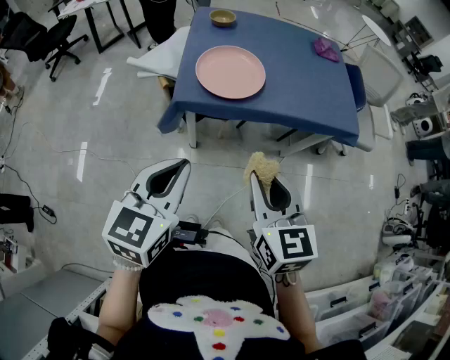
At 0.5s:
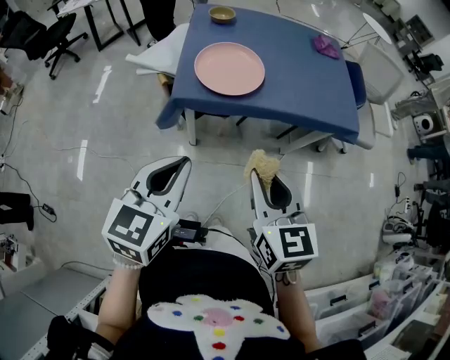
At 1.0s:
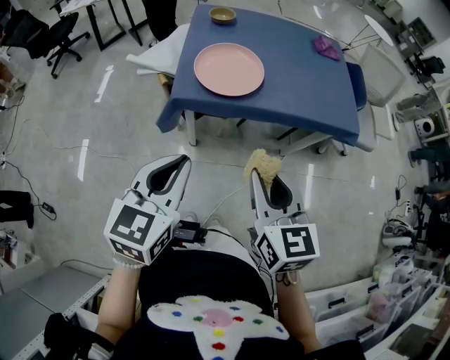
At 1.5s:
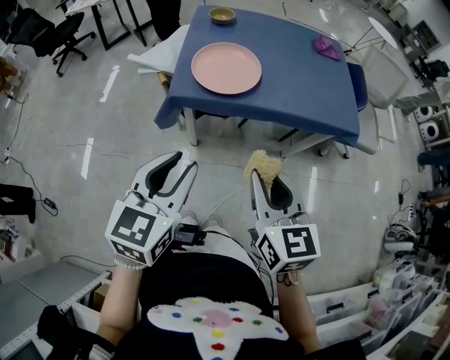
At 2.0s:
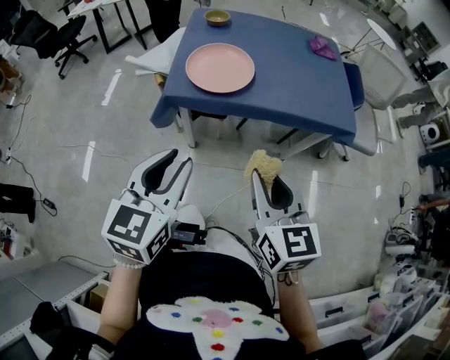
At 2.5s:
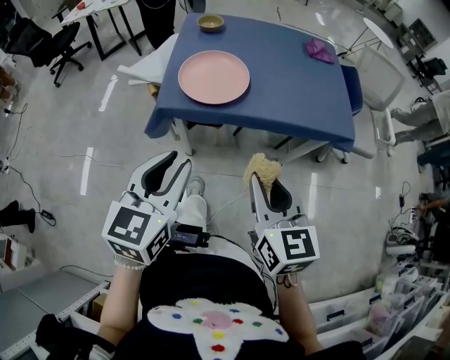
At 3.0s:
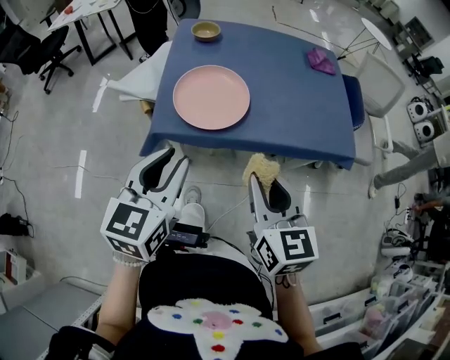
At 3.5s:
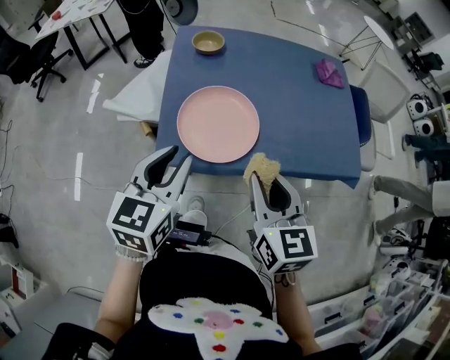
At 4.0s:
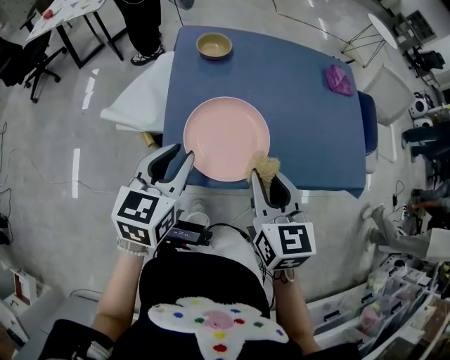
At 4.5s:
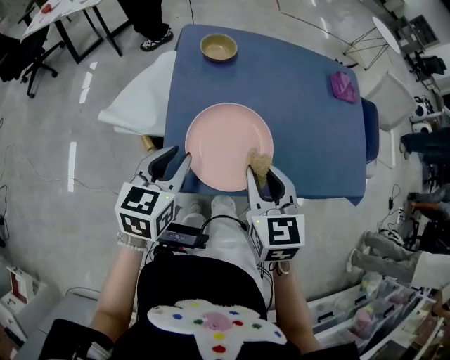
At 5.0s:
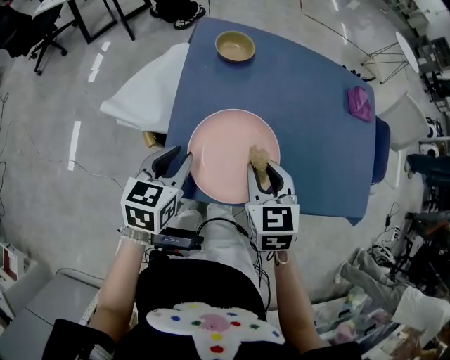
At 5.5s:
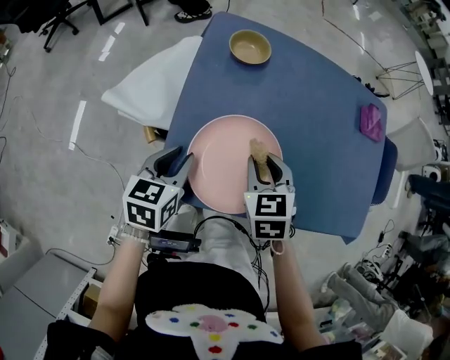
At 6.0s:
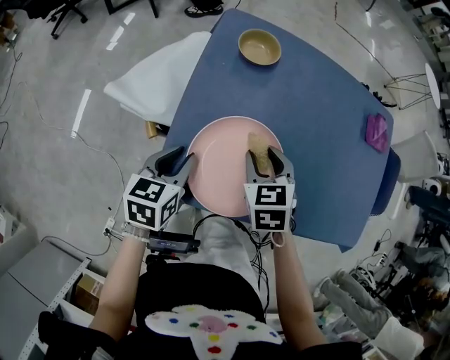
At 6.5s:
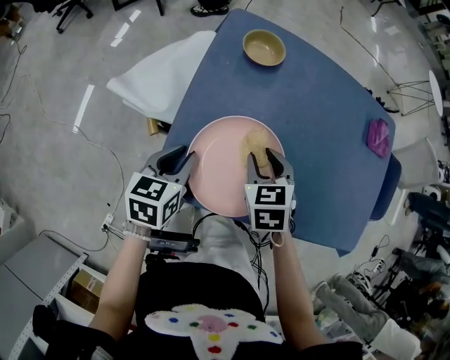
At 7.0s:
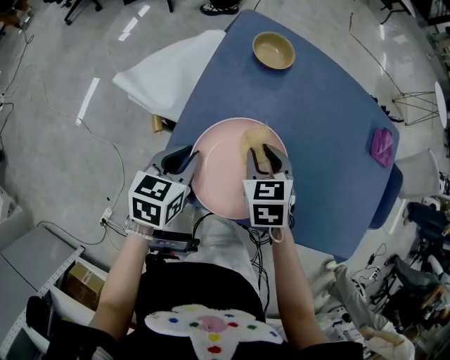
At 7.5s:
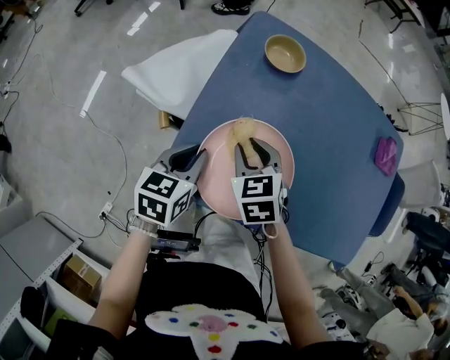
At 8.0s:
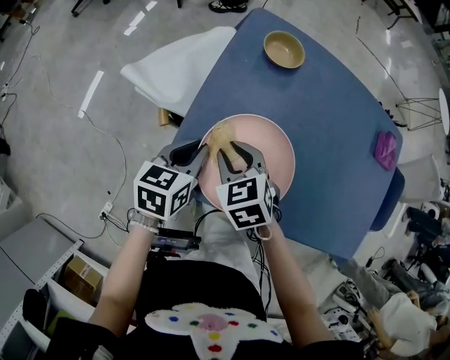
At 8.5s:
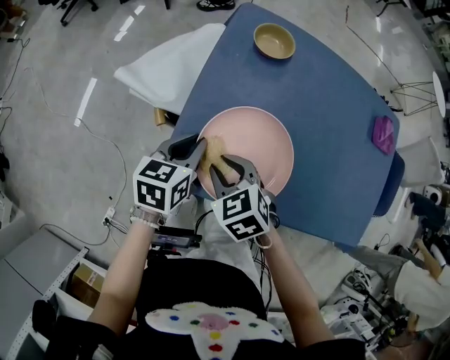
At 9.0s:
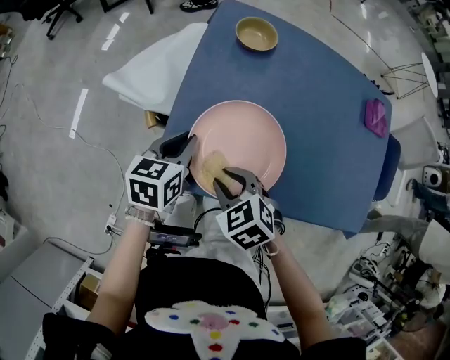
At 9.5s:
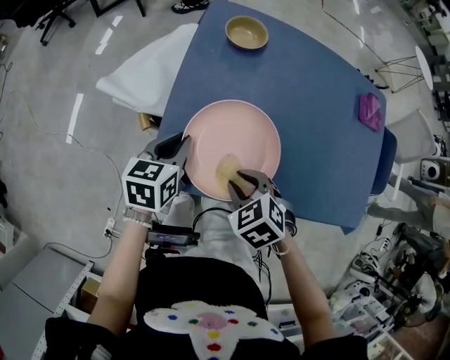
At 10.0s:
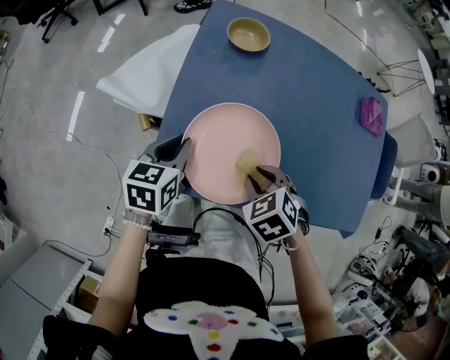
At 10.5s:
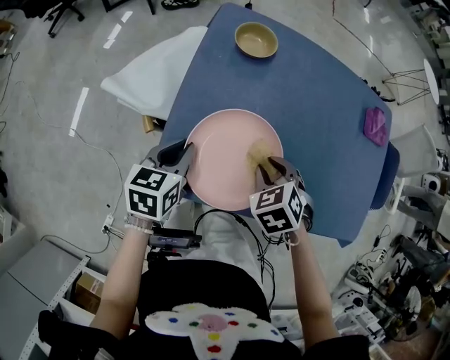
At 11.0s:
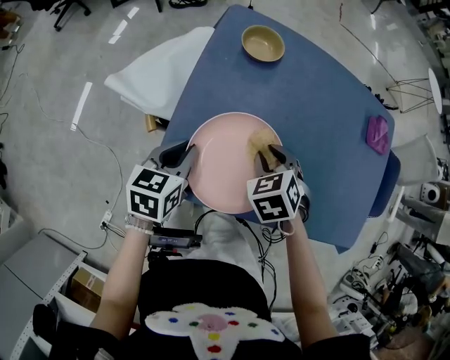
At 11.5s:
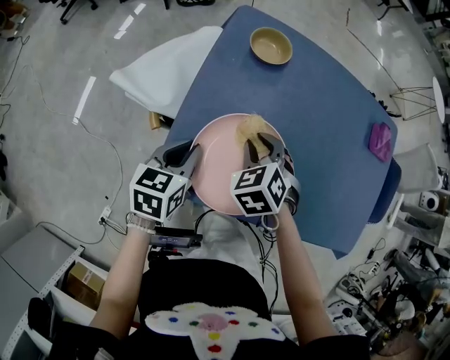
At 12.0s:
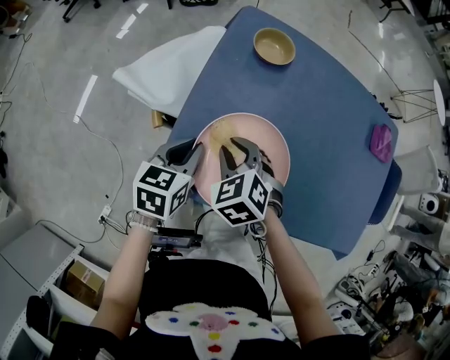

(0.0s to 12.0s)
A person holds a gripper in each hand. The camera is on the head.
0.0s - 2.0s: The grippers both shift to the right by approximately 5 cm. The left gripper opens up.
2.0s - 4.0s: The grippers both shift forward by some 30 cm.
4.0s - 6.0s: The left gripper shifts some 15 cm downward and forward, and rotates about 20 degrees, while the right gripper heads forward and downward, covering some 20 cm, and rotates about 30 degrees.
6.0s - 8.0s: The right gripper moves to the left, some 10 cm, and swivels some 20 degrees.
8.0s - 10.0s: The right gripper moves to the right and backward, approximately 15 cm, and rotates some 20 degrees.
10.0s - 12.0s: The right gripper heads to the left and forward, covering about 15 cm.

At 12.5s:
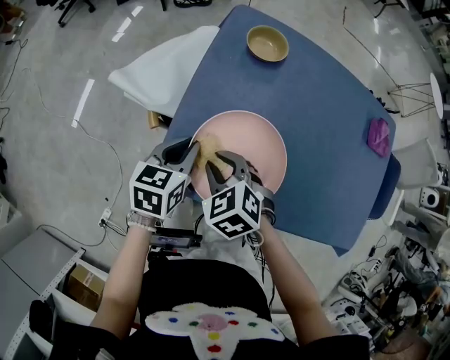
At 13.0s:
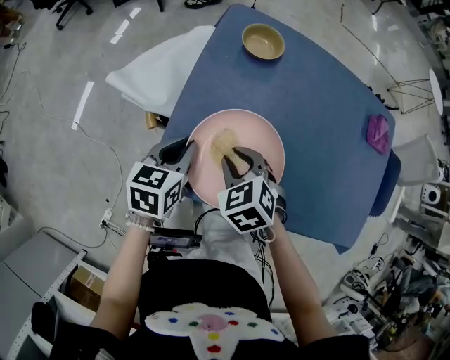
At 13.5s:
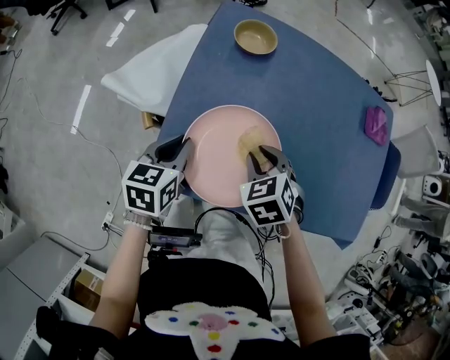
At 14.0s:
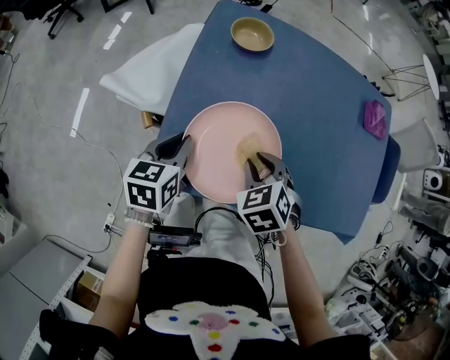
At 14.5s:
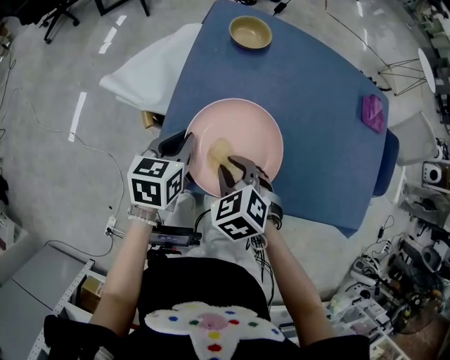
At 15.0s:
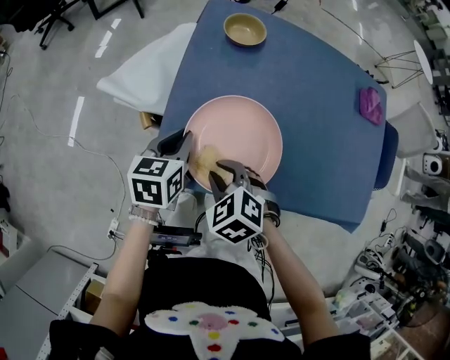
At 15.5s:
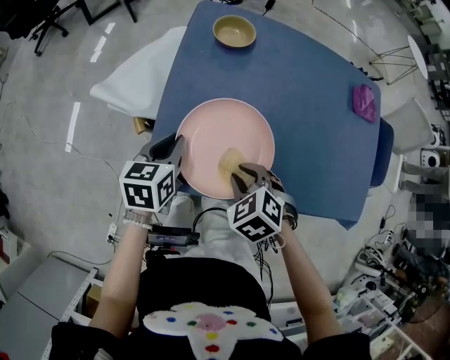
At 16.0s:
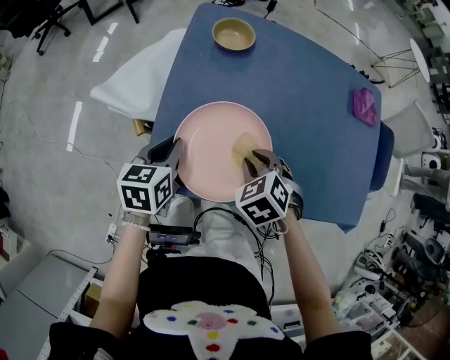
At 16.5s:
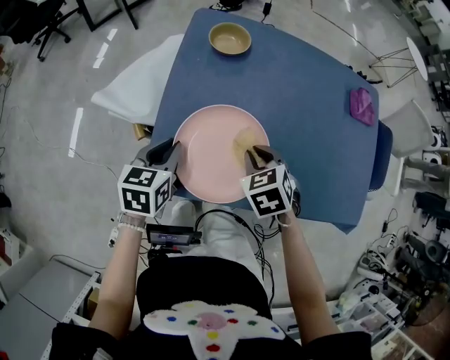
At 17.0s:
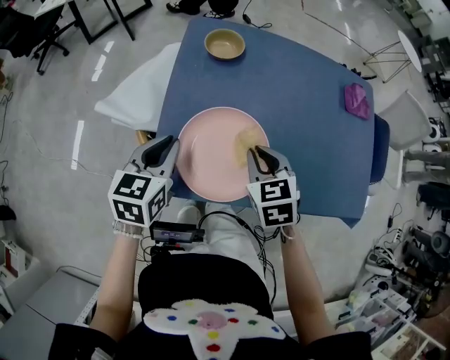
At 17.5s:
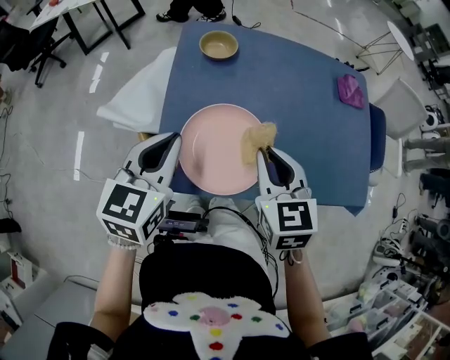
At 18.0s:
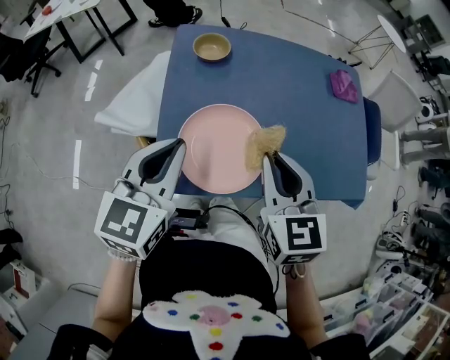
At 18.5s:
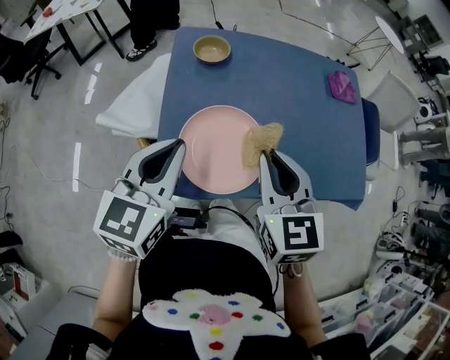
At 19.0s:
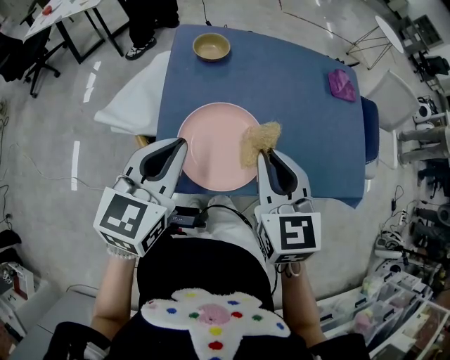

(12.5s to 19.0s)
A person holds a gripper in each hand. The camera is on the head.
14.5s - 17.0s: The left gripper goes roughly 5 cm upward. The right gripper shifts roughly 10 cm to the right, upward and forward, and rotates approximately 30 degrees.
17.0s - 19.0s: Both grippers move upward, about 15 cm. The right gripper turns by about 30 degrees.

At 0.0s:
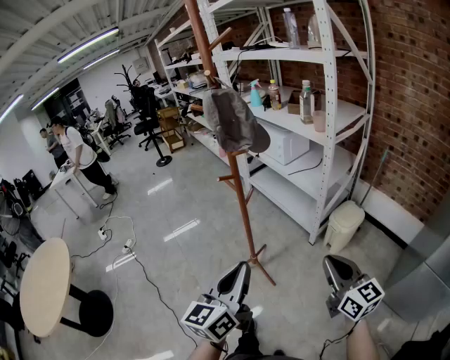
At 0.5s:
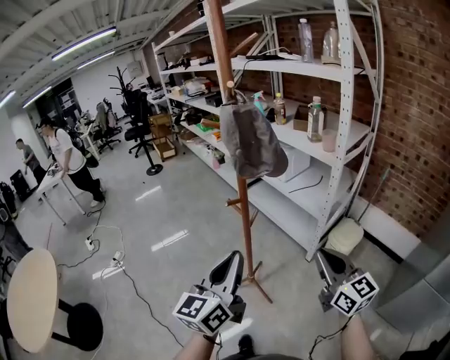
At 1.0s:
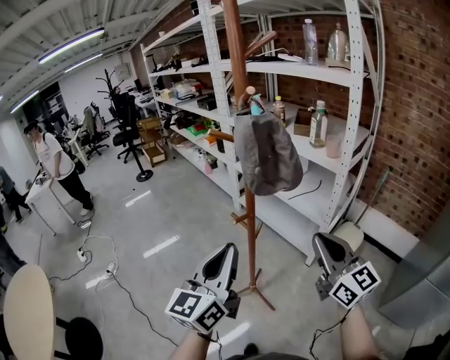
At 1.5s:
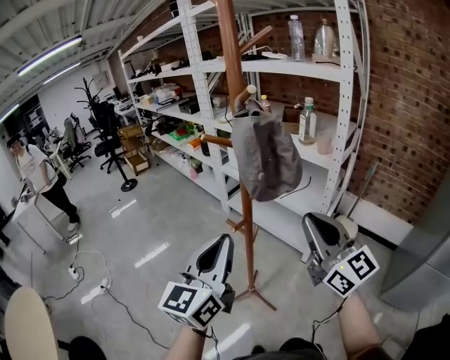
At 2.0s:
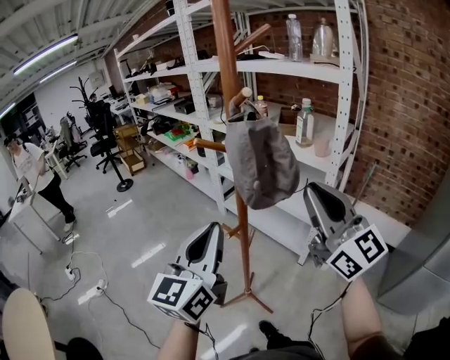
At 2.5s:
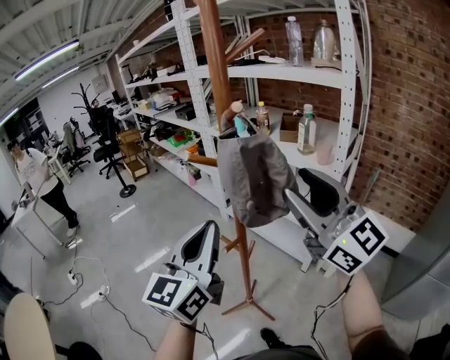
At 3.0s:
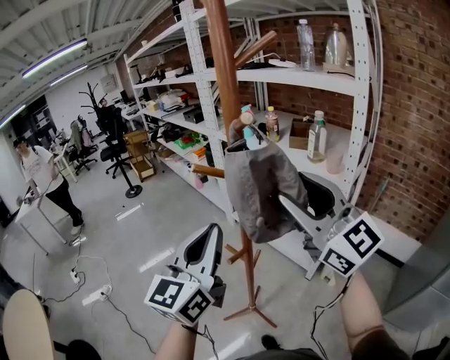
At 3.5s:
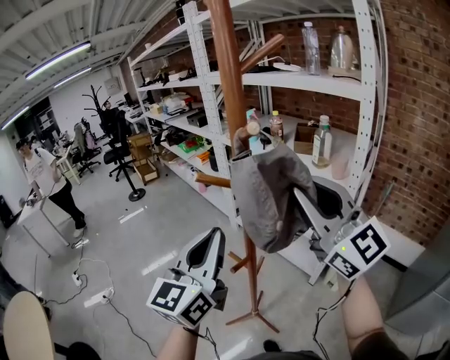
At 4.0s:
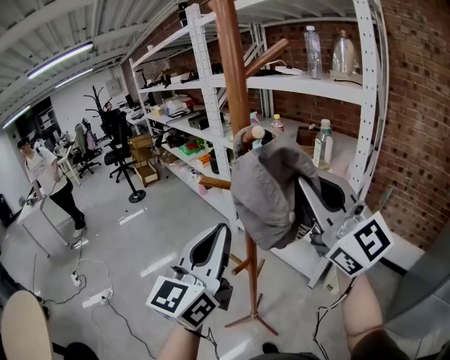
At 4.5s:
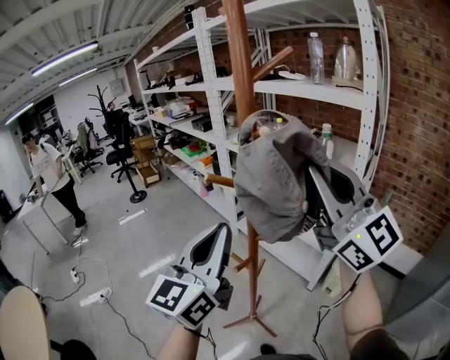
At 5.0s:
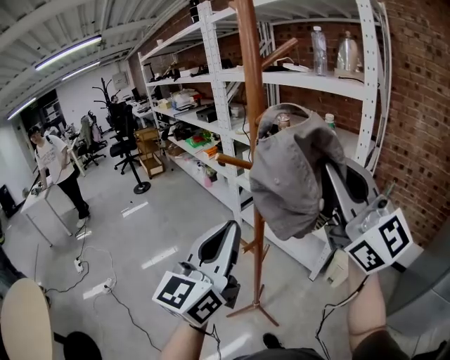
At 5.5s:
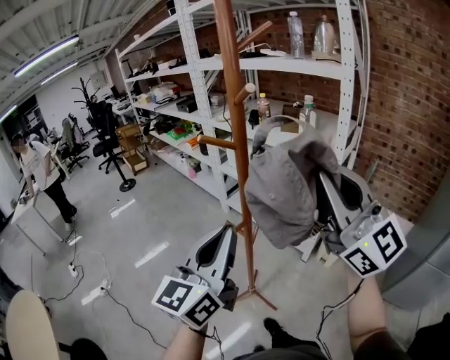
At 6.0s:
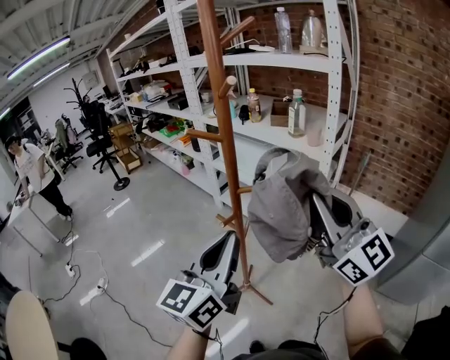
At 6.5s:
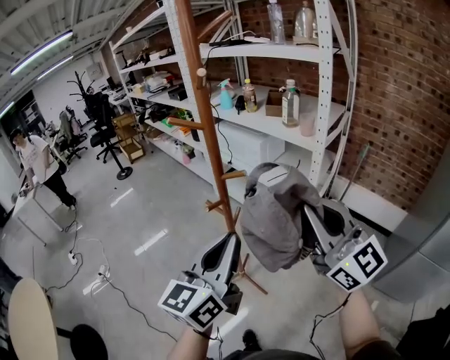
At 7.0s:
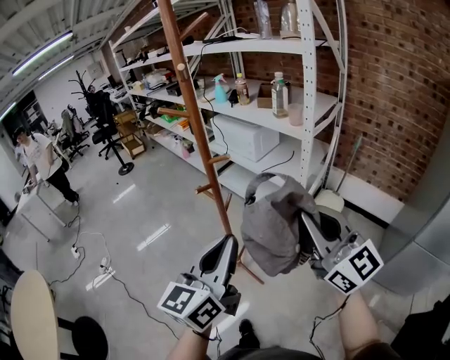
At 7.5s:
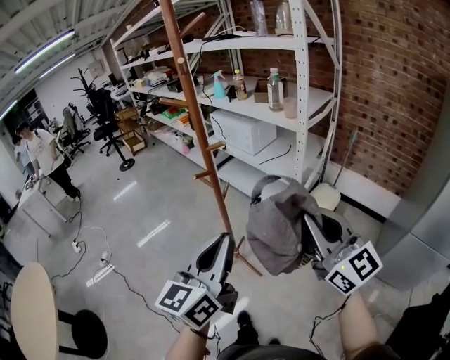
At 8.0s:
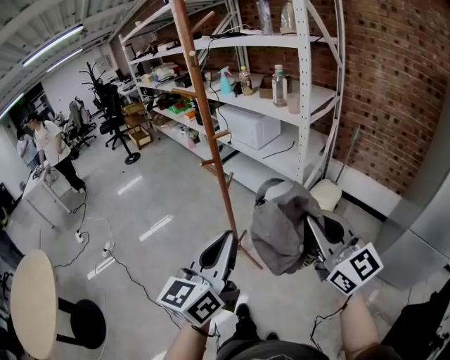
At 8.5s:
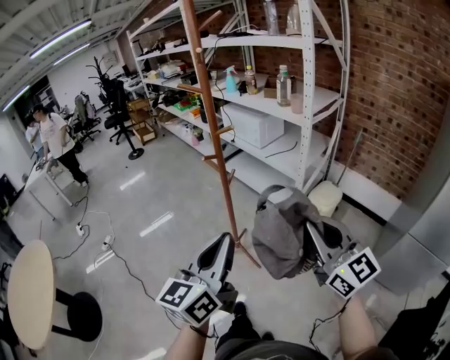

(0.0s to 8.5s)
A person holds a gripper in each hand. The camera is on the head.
0.0s - 2.0s: The left gripper is displaced forward, to the left and upward by roughly 30 cm. The right gripper travels forward, upward and to the left by roughly 40 cm, and turns by some 30 degrees.
2.0s - 4.0s: The right gripper is displaced forward and upward by roughly 10 cm, and opens, then closes again. Meanwhile the left gripper heads forward, covering approximately 5 cm.
4.0s - 6.5s: The grippers both shift backward, downward and to the right by some 20 cm.
6.5s - 8.5s: The right gripper travels backward and downward by some 20 cm. Meanwhile the left gripper heads backward, covering about 20 cm.
